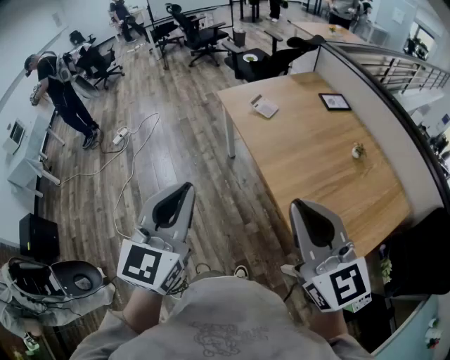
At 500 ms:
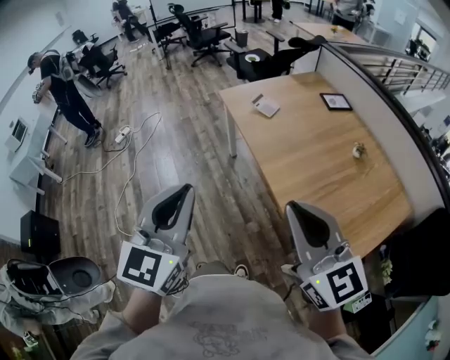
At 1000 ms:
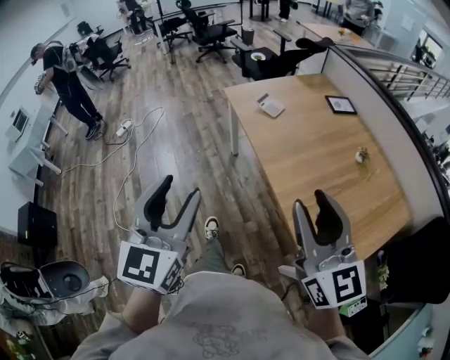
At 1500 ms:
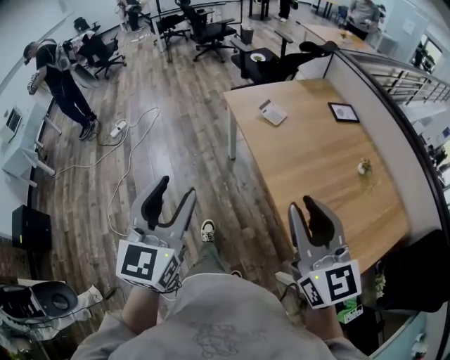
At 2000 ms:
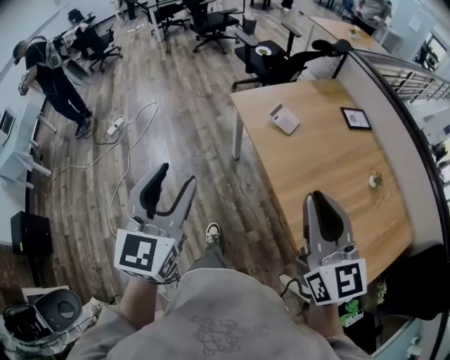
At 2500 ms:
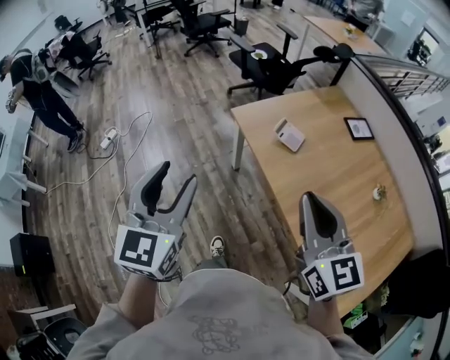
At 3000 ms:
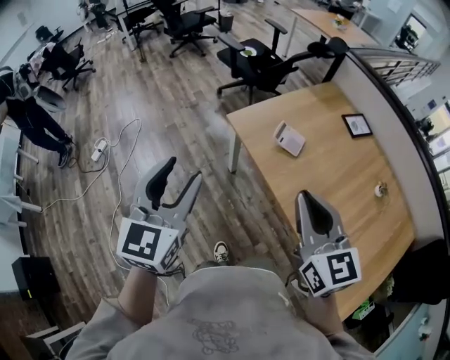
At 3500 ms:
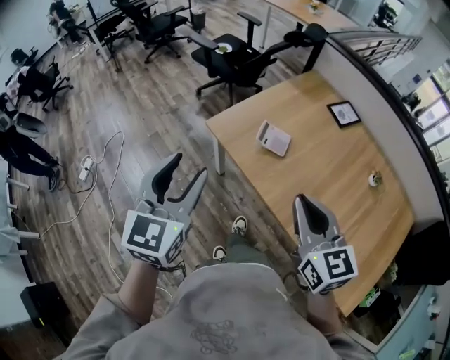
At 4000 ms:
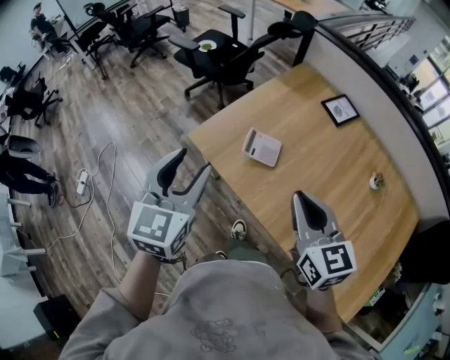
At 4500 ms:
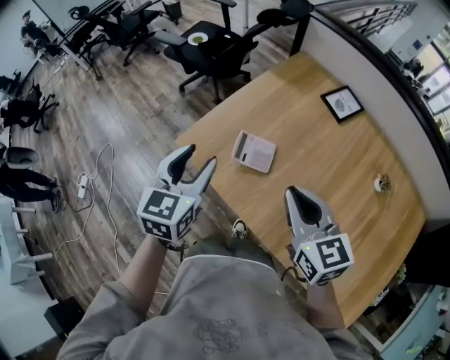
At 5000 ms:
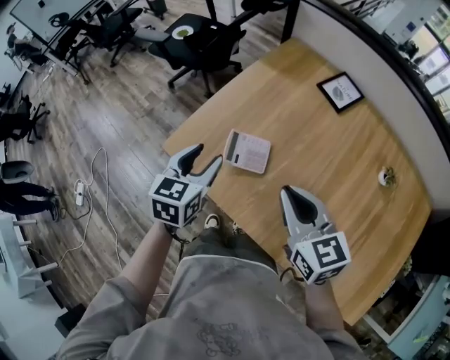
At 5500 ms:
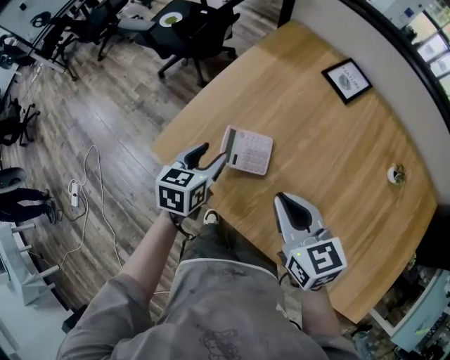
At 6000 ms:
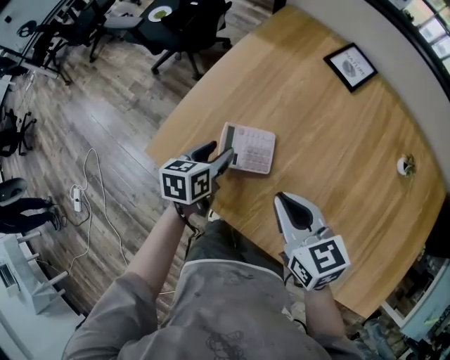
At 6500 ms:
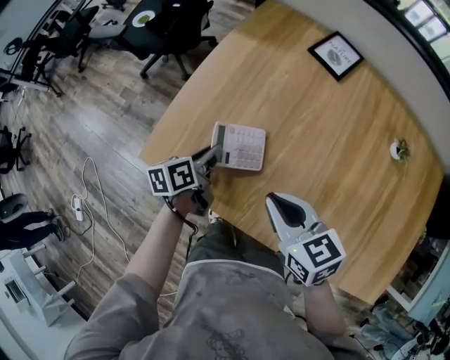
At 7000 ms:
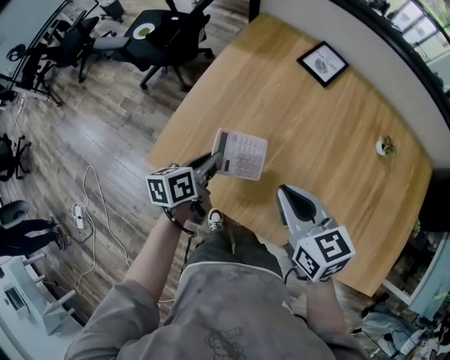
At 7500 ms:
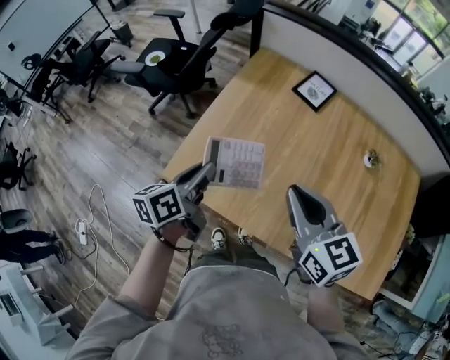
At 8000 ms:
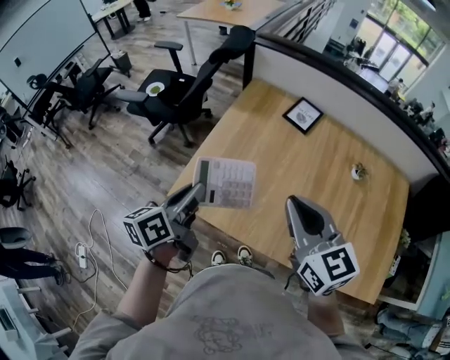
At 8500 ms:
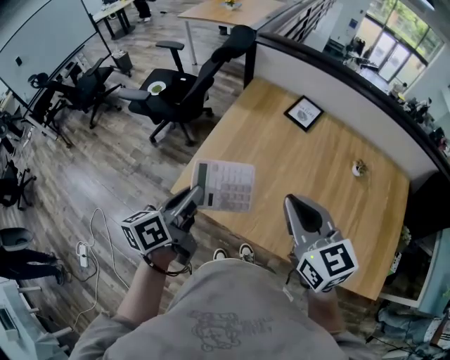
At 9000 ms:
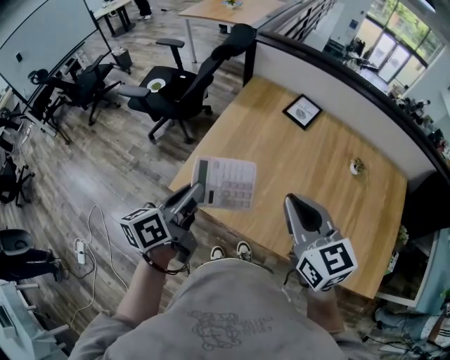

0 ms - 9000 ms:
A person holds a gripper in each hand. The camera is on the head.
0 ms - 2000 ms: The left gripper heads forward and to the left, covering approximately 25 cm, and opens up. The right gripper travels forward by about 20 cm, and opens, then closes once more.
2000 ms - 4500 ms: The grippers both shift forward by approximately 40 cm. The left gripper rotates roughly 30 degrees. Meanwhile the right gripper swivels some 30 degrees.
4500 ms - 7000 ms: The right gripper heads downward, covering approximately 10 cm, while the left gripper goes approximately 20 cm downward and forward, swivels approximately 50 degrees, and closes its fingers.
7000 ms - 9000 ms: The grippers both shift upward by some 20 cm.

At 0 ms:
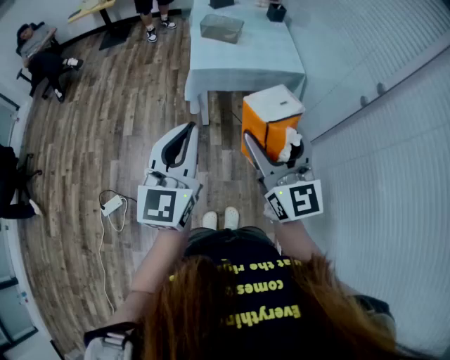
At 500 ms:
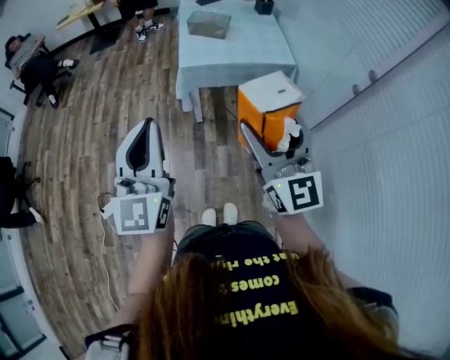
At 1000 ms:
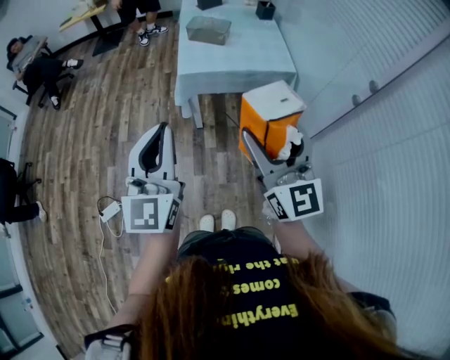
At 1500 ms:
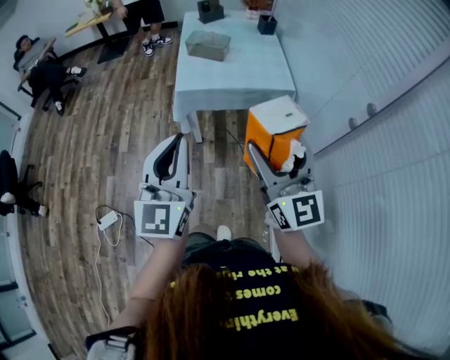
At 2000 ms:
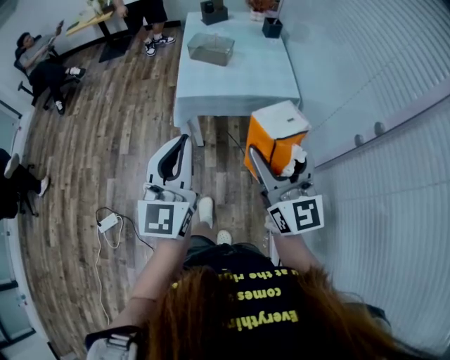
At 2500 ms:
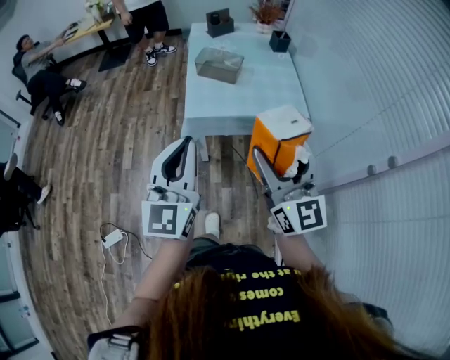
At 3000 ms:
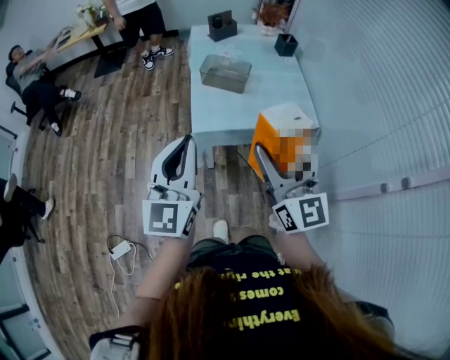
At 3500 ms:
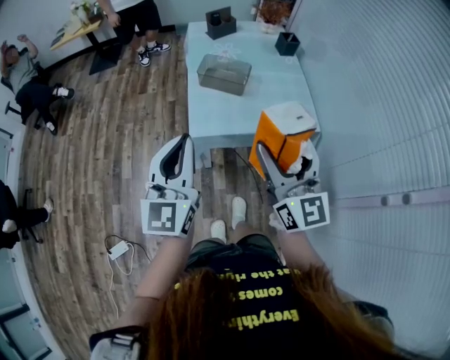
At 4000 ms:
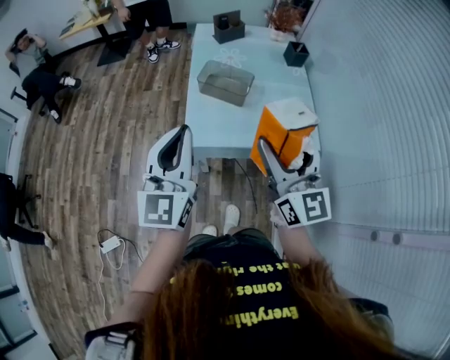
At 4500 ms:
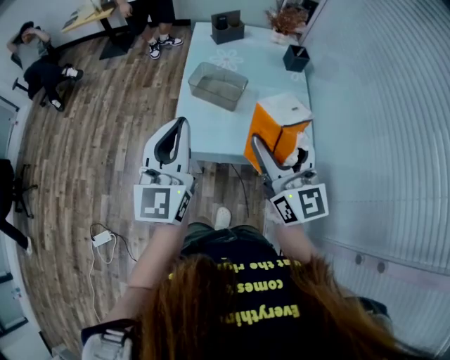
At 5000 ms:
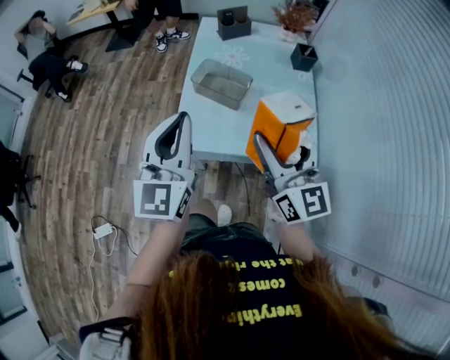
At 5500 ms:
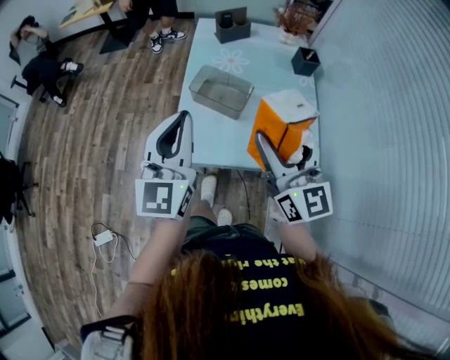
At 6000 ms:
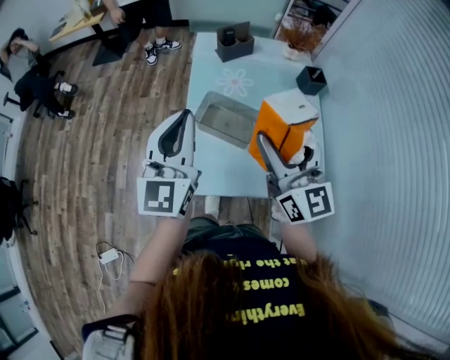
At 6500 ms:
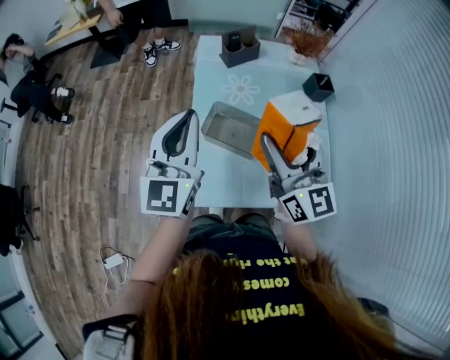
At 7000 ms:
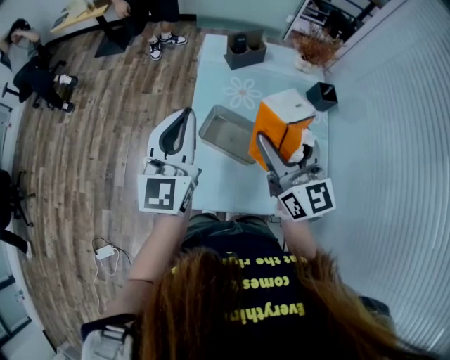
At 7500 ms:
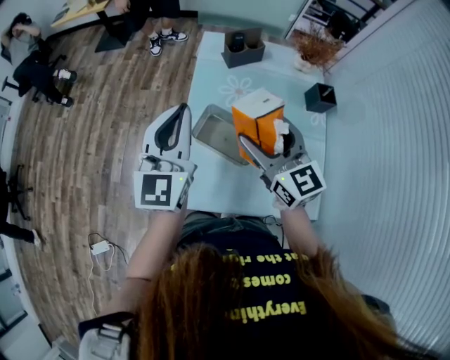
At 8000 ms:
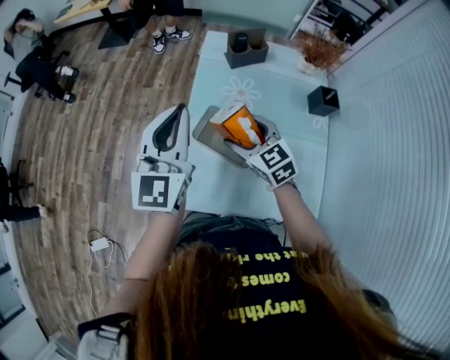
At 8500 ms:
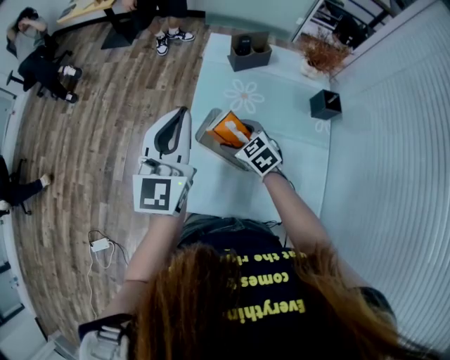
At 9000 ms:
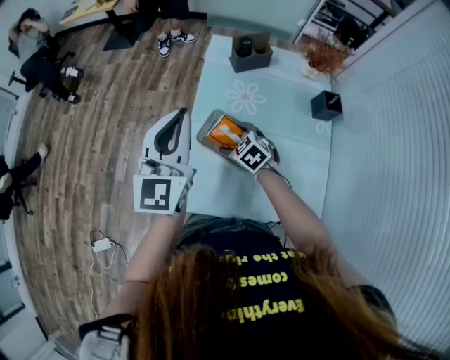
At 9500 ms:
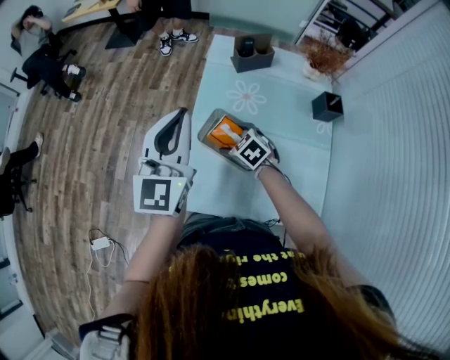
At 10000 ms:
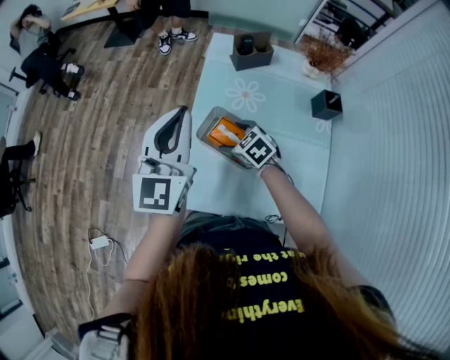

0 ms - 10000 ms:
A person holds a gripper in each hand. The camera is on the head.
0 ms - 2000 ms: The two grippers go approximately 15 cm forward and to the right.
2000 ms - 4000 ms: Both grippers move forward, roughly 30 cm.
4000 ms - 6000 ms: Both grippers move forward, some 25 cm.
6000 ms - 8000 ms: The left gripper is displaced forward by approximately 10 cm, while the right gripper travels downward and forward by approximately 25 cm, and tilts its fingers about 40 degrees downward.
8000 ms - 10000 ms: The right gripper goes about 10 cm downward, and turns by roughly 20 degrees.

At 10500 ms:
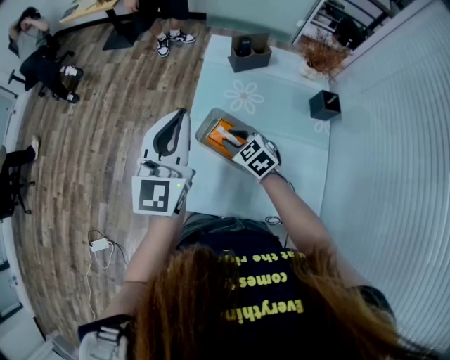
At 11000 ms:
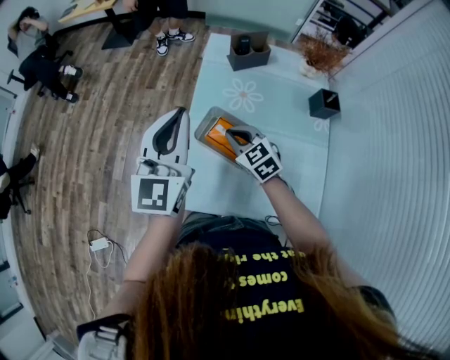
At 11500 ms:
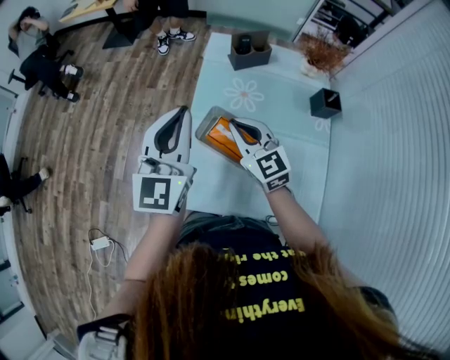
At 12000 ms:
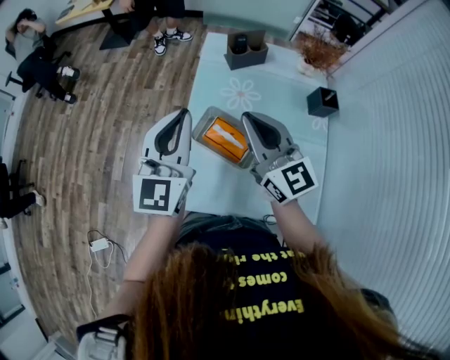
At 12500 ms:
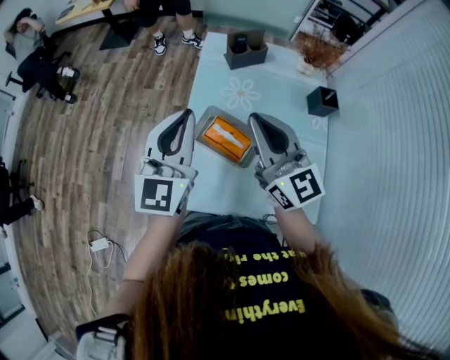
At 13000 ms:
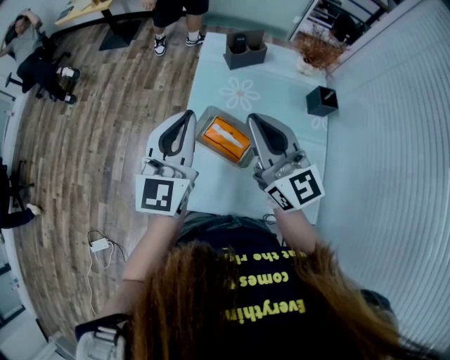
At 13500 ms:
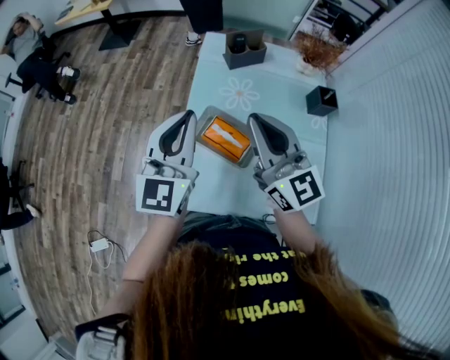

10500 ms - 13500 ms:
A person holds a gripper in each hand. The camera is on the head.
10500 ms - 12000 ms: The right gripper moves upward, some 25 cm, and points its fingers approximately 50 degrees further upward.
12000 ms - 13500 ms: There are only small adjustments of the grippers.

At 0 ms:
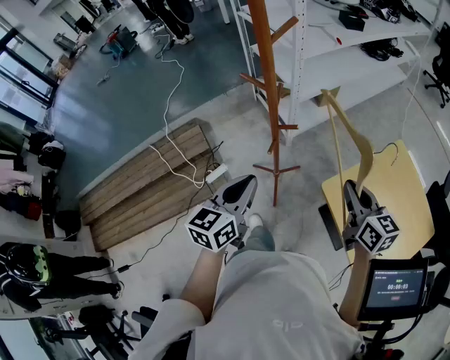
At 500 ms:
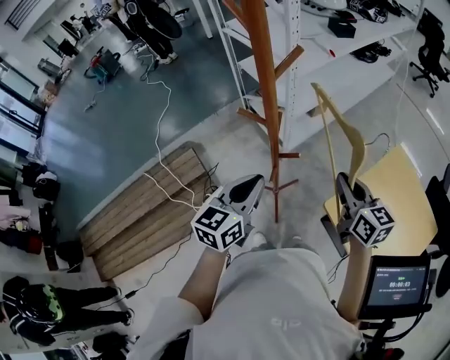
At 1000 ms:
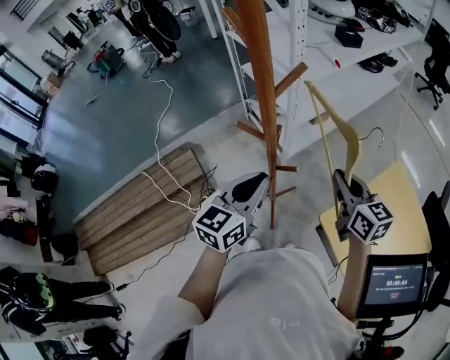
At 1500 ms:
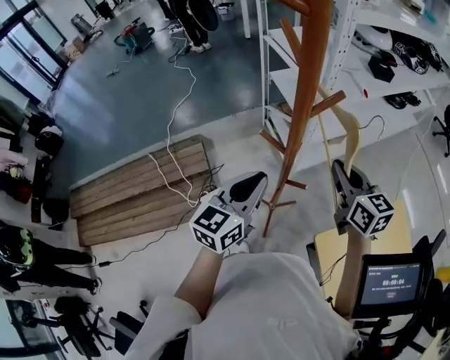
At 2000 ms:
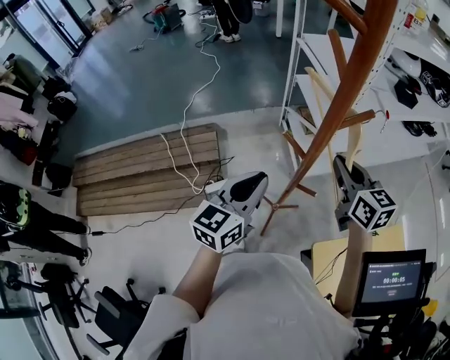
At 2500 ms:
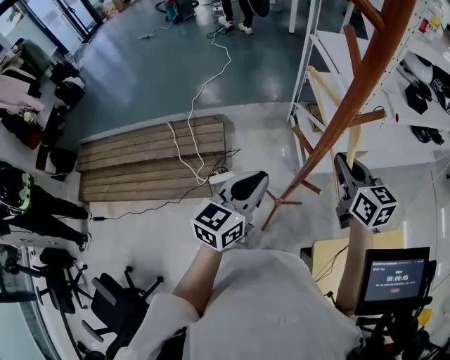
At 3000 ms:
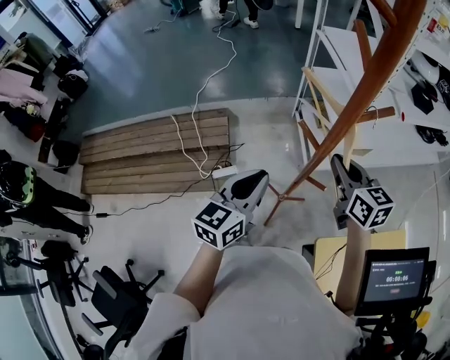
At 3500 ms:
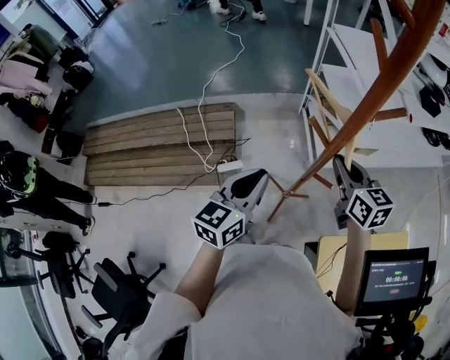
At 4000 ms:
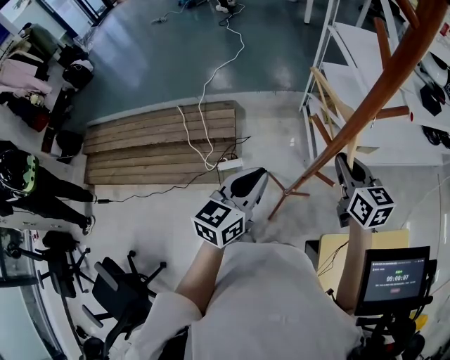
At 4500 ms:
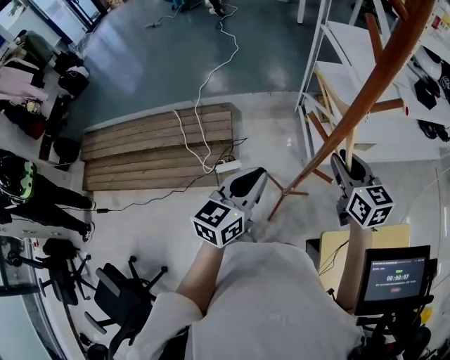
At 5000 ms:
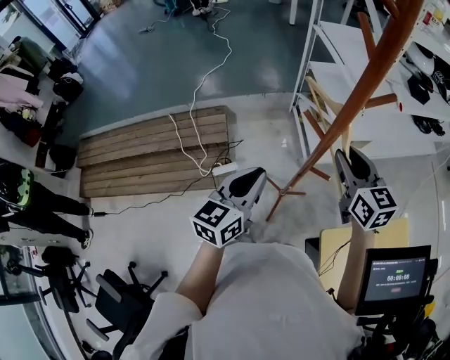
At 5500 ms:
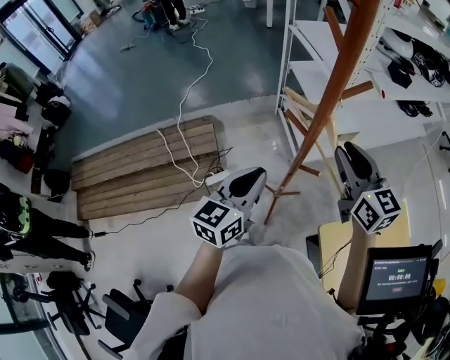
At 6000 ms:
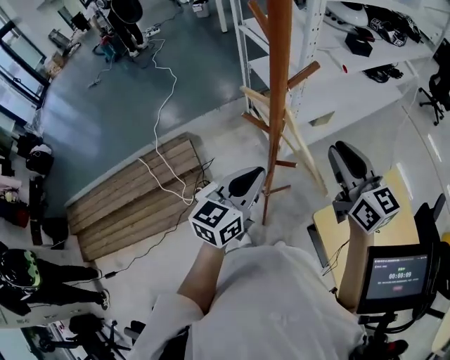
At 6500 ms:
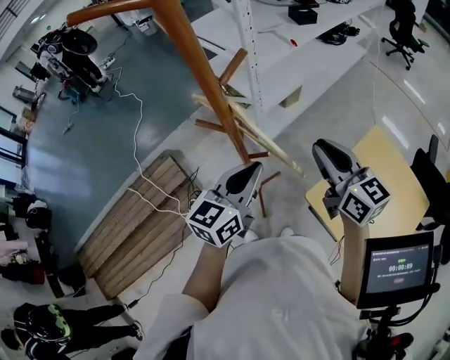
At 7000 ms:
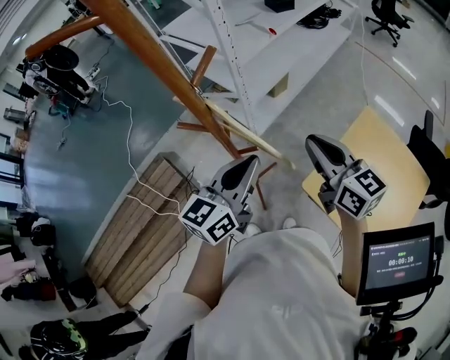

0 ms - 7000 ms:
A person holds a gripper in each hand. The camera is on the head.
0 ms - 2000 ms: The right gripper moves forward and to the left, approximately 30 cm, and turns by approximately 20 degrees. Meanwhile the left gripper is displaced forward by roughly 15 cm.
2000 ms - 3500 ms: The left gripper changes place by about 5 cm. The right gripper travels to the left by some 5 cm.
3500 ms - 5000 ms: There are only small adjustments of the grippers.
5000 ms - 7000 ms: The left gripper changes place by about 20 cm, and rotates some 40 degrees, while the right gripper changes place by roughly 20 cm, and rotates some 30 degrees.
